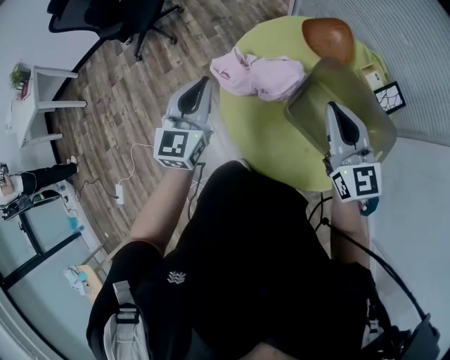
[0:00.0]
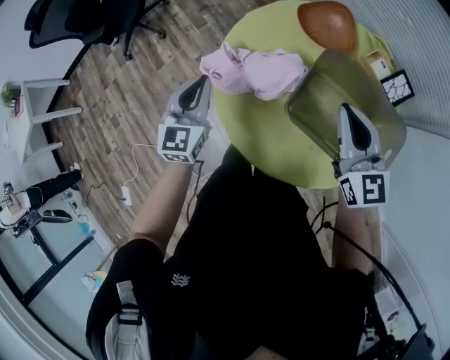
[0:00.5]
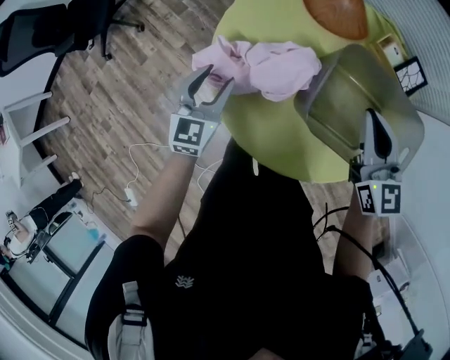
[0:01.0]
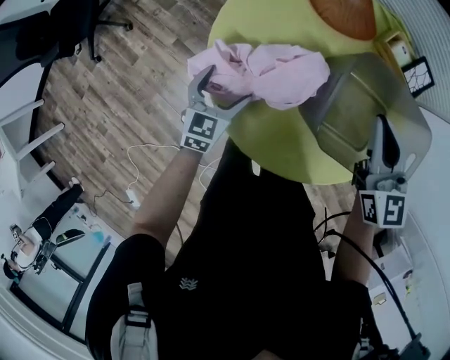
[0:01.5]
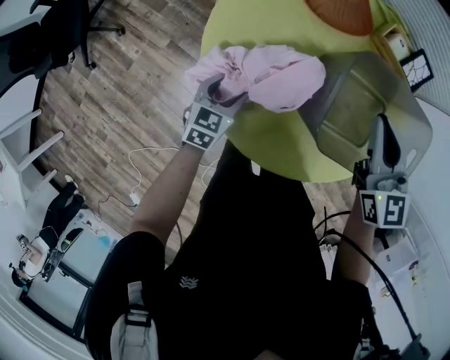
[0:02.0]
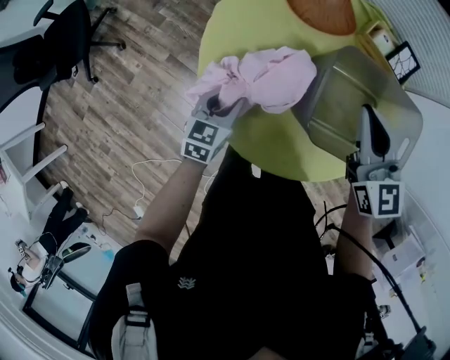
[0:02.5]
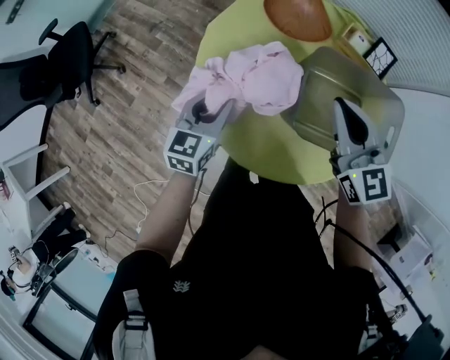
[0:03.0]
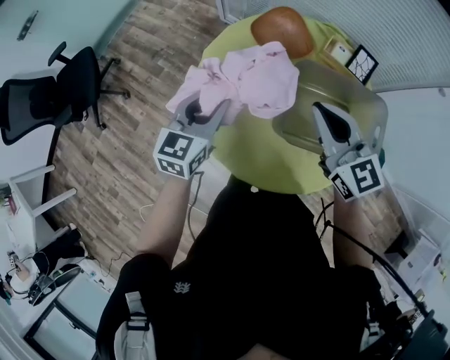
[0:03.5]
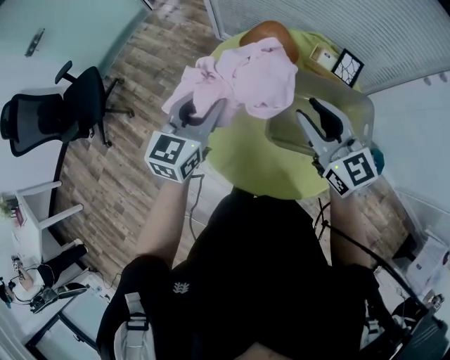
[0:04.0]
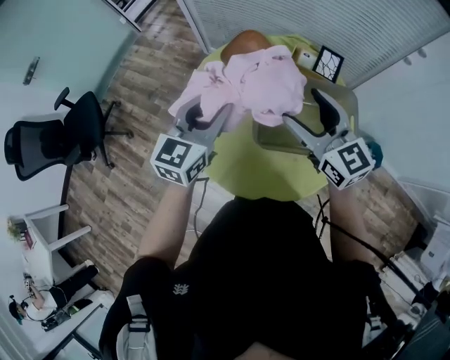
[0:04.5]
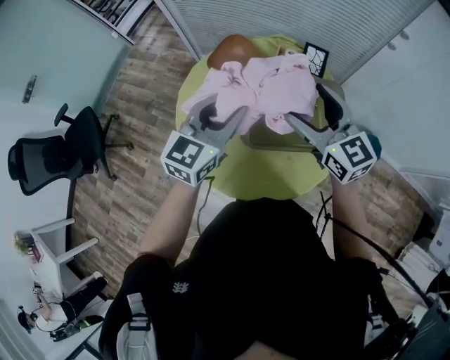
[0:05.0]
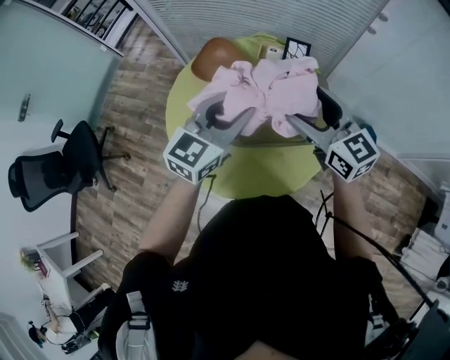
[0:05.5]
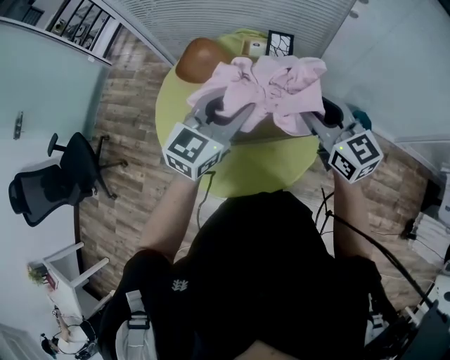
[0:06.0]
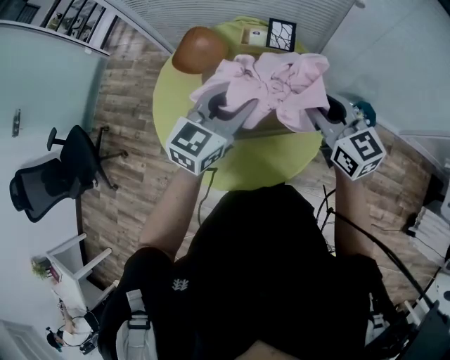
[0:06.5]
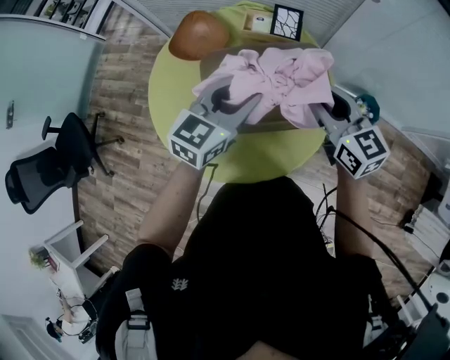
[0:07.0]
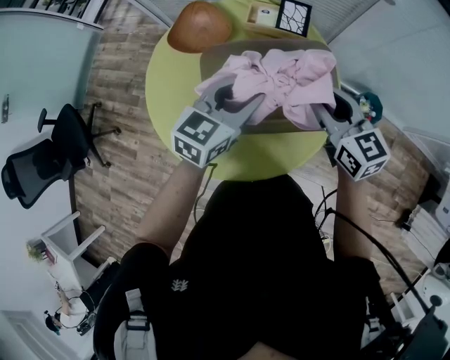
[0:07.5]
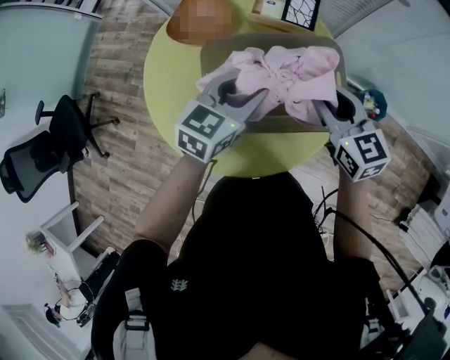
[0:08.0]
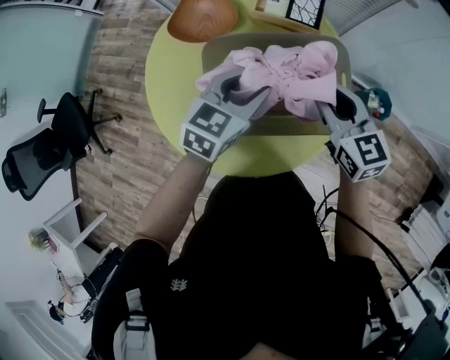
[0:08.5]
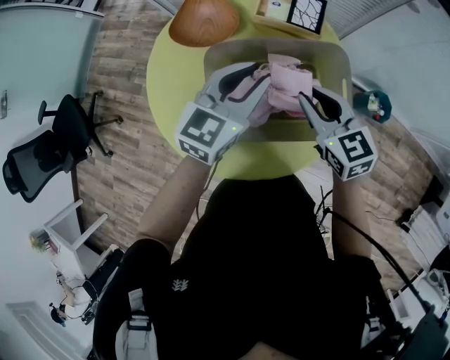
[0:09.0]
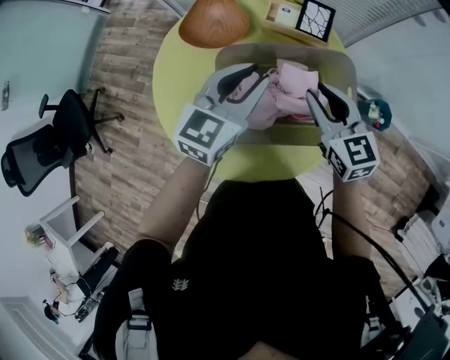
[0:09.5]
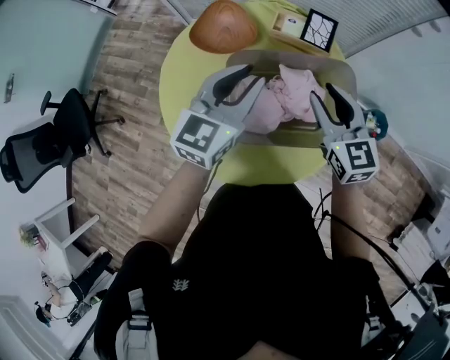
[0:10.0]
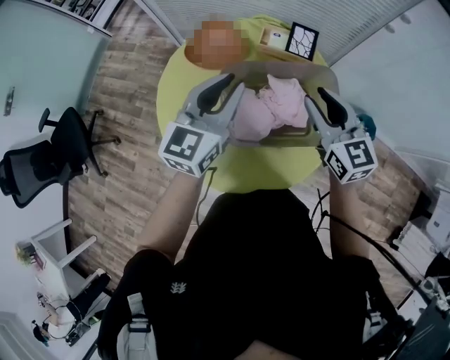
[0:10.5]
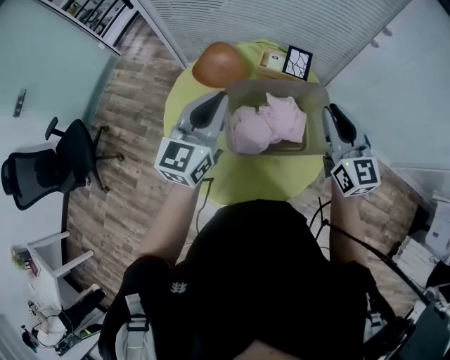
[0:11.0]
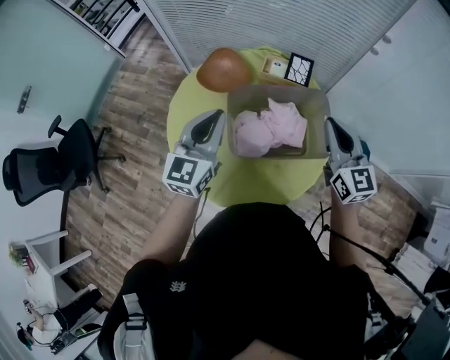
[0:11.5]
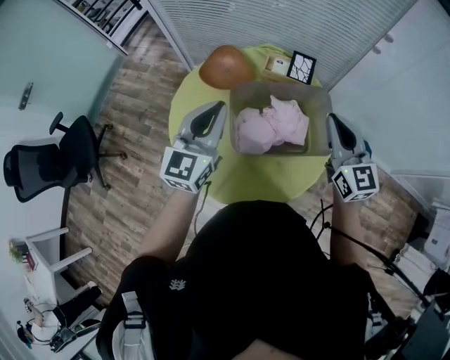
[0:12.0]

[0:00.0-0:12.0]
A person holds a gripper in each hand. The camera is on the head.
0:00.0 to 0:02.0: The right gripper moves downward, approximately 10 cm, and changes its angle by roughly 30 degrees, while the left gripper travels downward by some 30 cm, angles its fingers downward, by about 30 degrees, and opens up.
0:02.0 to 0:04.0: The right gripper is displaced upward and backward by roughly 15 cm. The left gripper goes roughly 35 cm upward, and swivels approximately 30 degrees.
0:04.0 to 0:06.0: Both grippers move to the right, approximately 25 cm. The left gripper swivels roughly 30 degrees. Meanwhile the right gripper opens and closes again.
0:06.0 to 0:08.0: The right gripper shifts roughly 15 cm downward and forward, while the left gripper moves downward, about 15 cm, and turns by about 20 degrees.
0:08.0 to 0:10.0: The right gripper goes about 5 cm to the left. Meanwhile the left gripper travels upward and to the left by approximately 10 cm, and changes its angle by about 20 degrees.
0:10.0 to 0:12.0: The left gripper heads upward, backward and to the left, covering some 15 cm; the right gripper goes some 15 cm upward and backward.

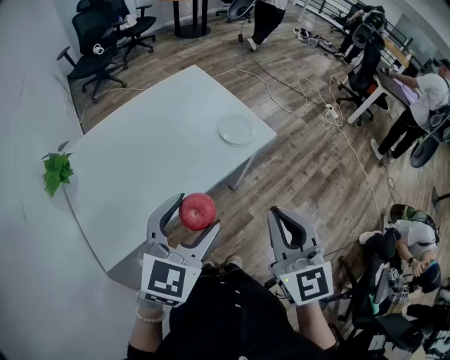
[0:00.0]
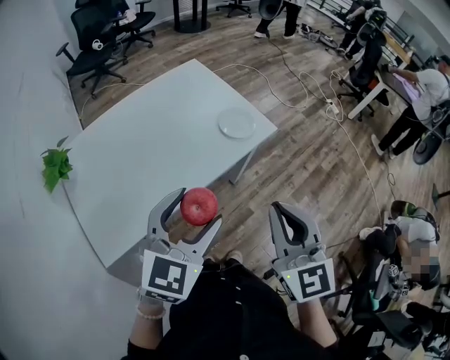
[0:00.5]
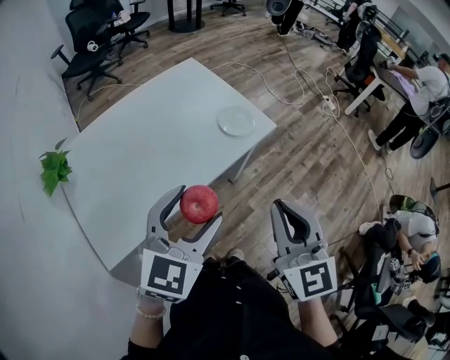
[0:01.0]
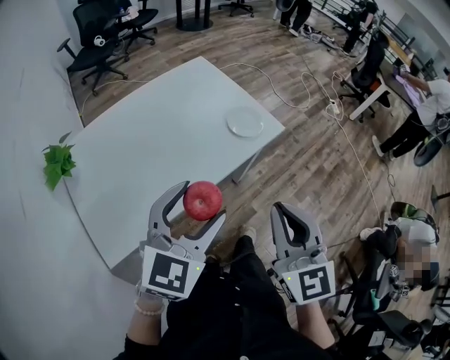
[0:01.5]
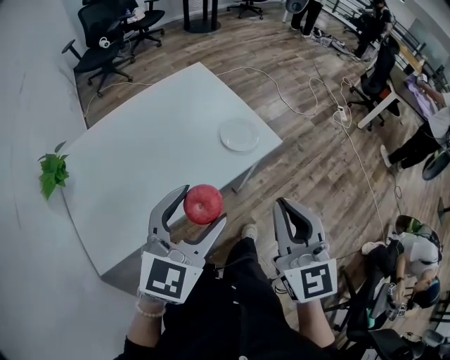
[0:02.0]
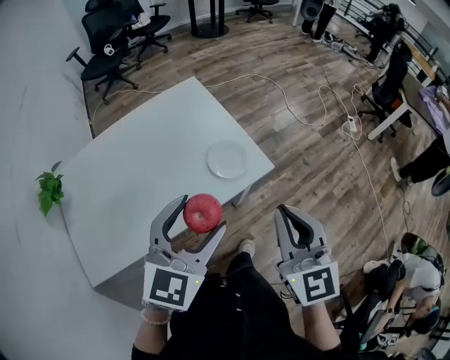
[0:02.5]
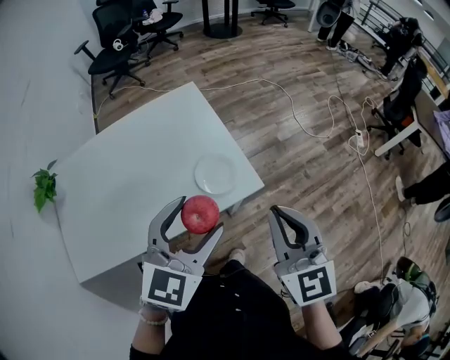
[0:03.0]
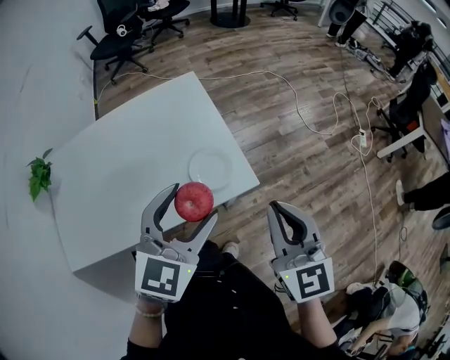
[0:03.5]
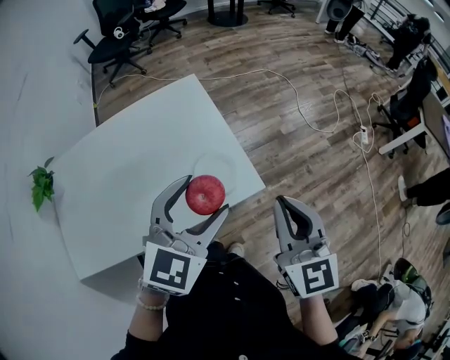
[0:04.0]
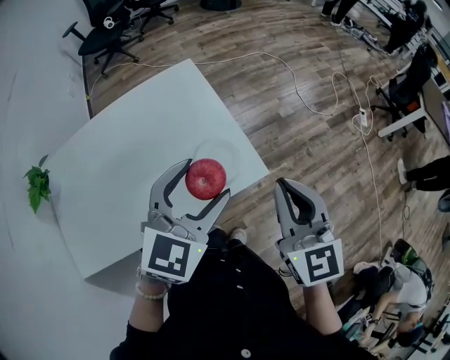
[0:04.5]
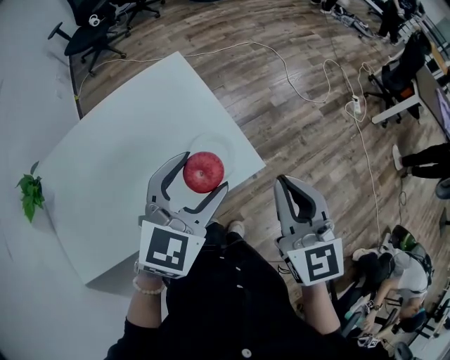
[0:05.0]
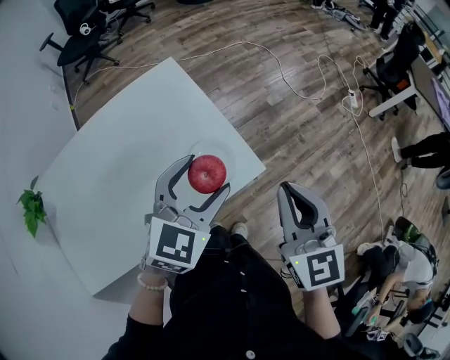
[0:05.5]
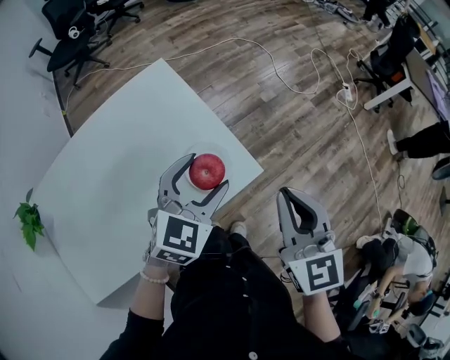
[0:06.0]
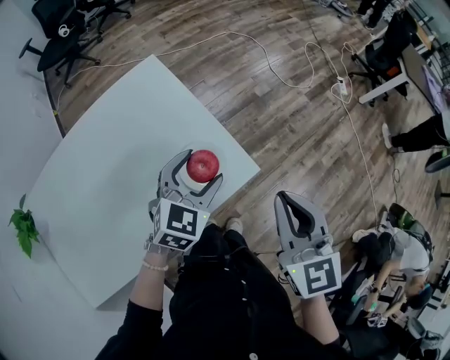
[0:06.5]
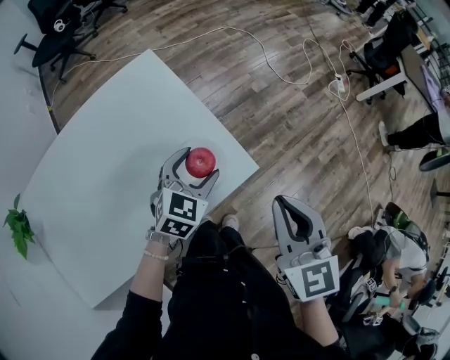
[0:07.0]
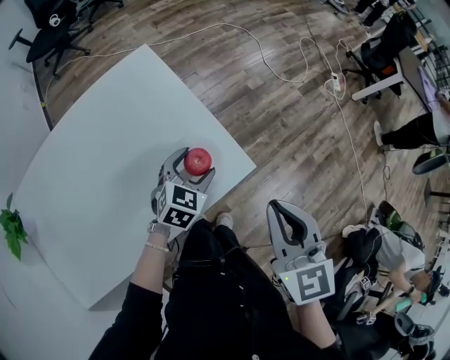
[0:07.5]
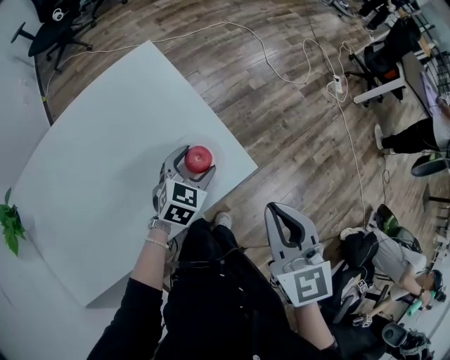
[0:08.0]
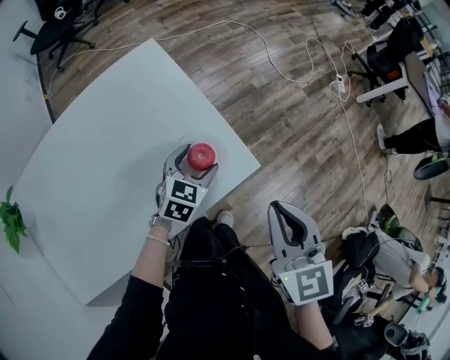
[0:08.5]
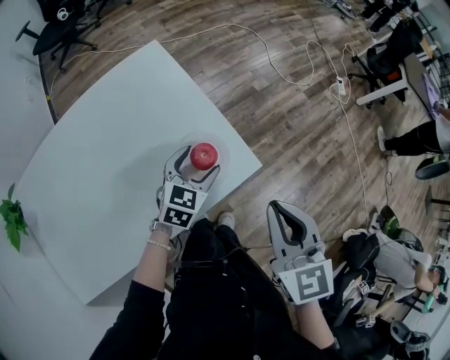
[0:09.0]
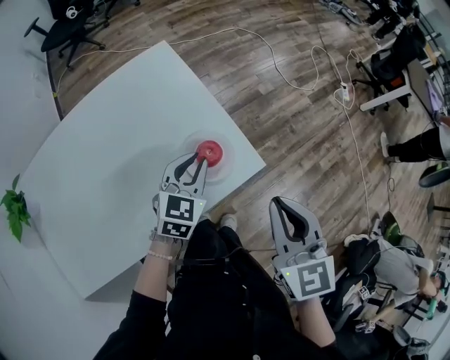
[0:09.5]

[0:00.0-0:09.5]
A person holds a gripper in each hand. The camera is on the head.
0:00.0 to 0:02.0: Both grippers travel together forward, about 10 cm.
0:02.0 to 0:04.0: The two grippers go some 30 cm forward and to the right.
0:04.0 to 0:05.5: The left gripper shifts some 10 cm downward and forward.
0:05.5 to 0:07.5: The right gripper shifts by roughly 5 cm. Meanwhile the left gripper moves downward, some 20 cm.
0:07.5 to 0:09.5: The left gripper goes roughly 5 cm upward, and closes up.

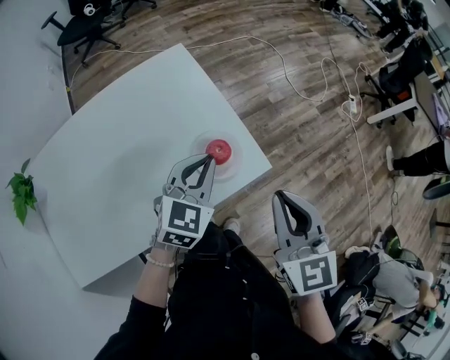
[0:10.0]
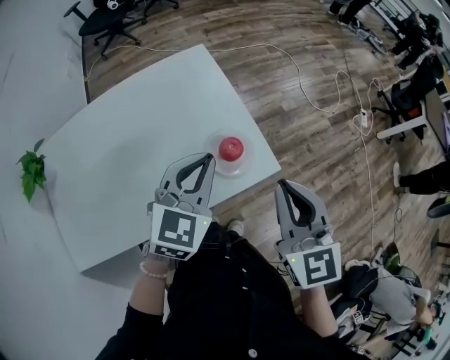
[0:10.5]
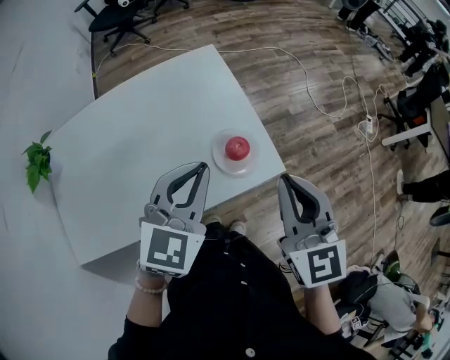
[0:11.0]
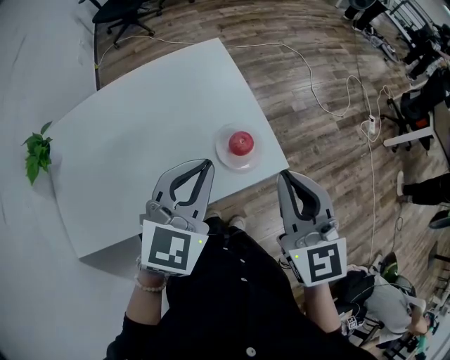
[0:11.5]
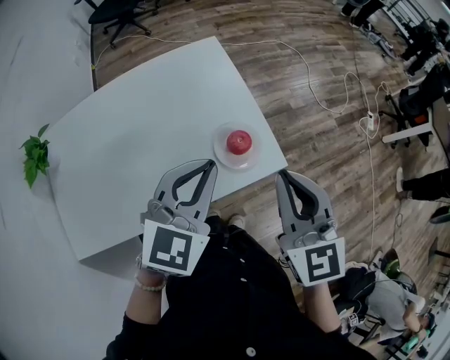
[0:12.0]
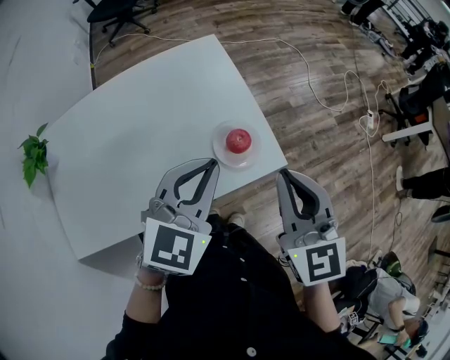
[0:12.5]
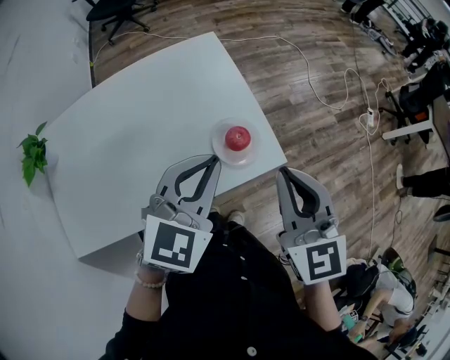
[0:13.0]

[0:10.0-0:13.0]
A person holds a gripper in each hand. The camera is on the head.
0:10.0 to 0:11.5: The left gripper shifts about 15 cm upward, backward and to the left; the right gripper is displaced to the left by some 5 cm.
0:11.5 to 0:13.0: The grippers stay close to where they were, moving slightly.

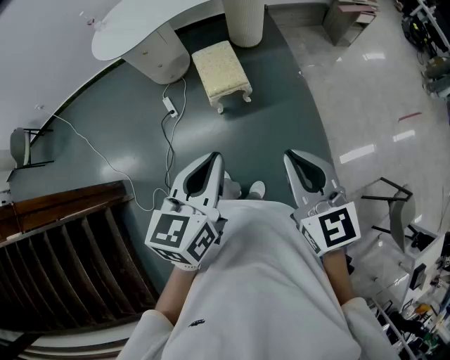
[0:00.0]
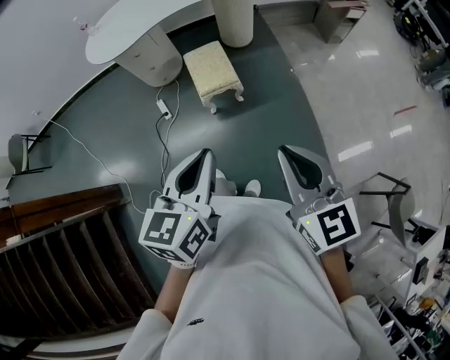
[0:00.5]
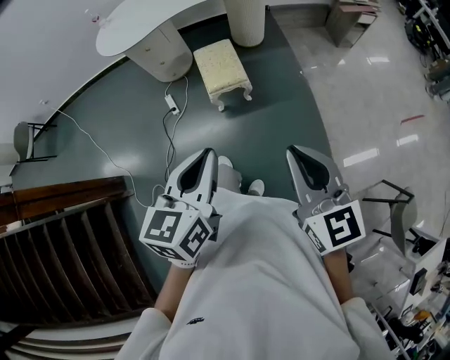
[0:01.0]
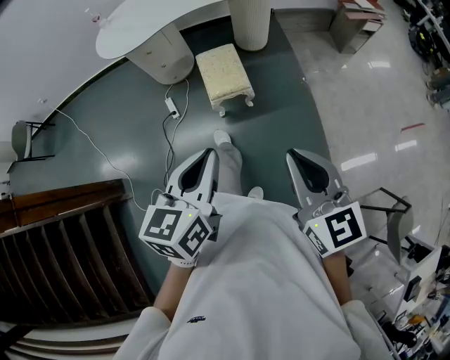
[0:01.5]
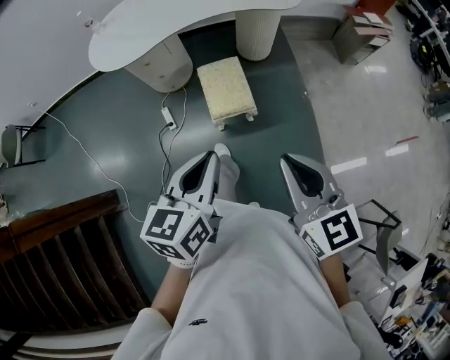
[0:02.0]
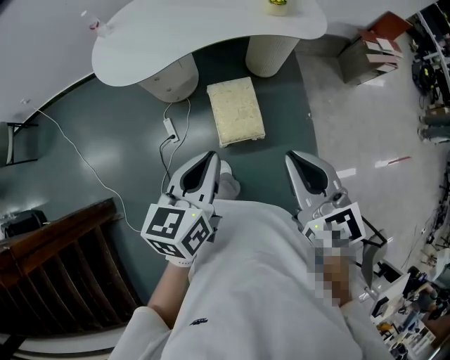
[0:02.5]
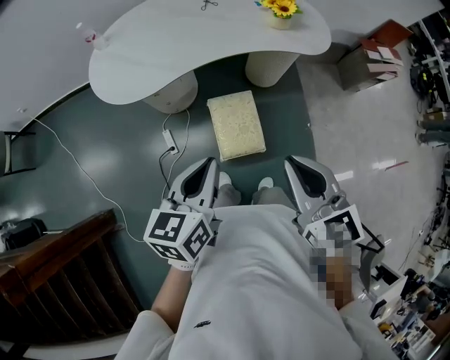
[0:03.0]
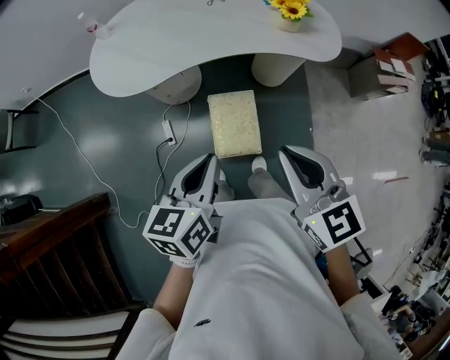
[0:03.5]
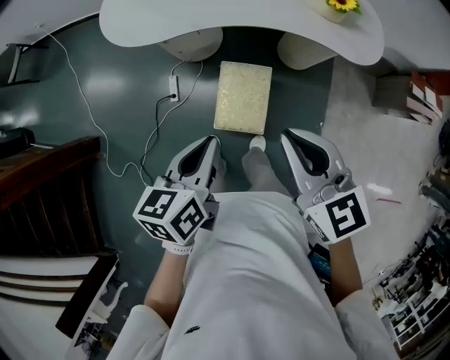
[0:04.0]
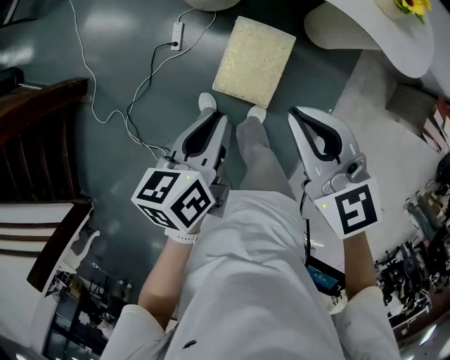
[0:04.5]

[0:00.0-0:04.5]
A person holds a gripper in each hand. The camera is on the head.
0:00.0 to 0:02.0: The two grippers go some 15 cm forward.
0:02.0 to 0:04.5: The left gripper moves about 30 cm, and turns by some 40 degrees, while the right gripper moves roughly 40 cm, and rotates roughly 40 degrees.
